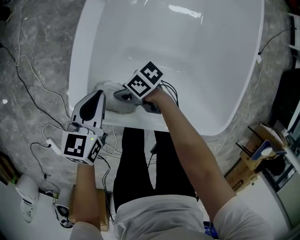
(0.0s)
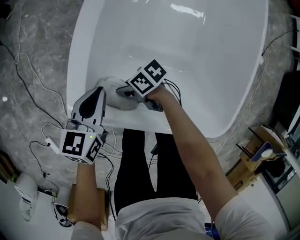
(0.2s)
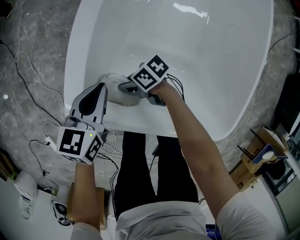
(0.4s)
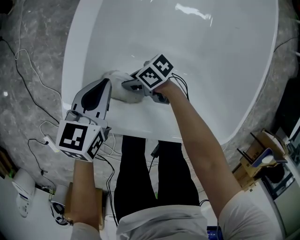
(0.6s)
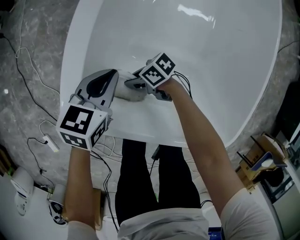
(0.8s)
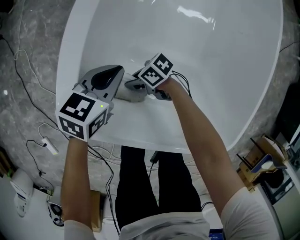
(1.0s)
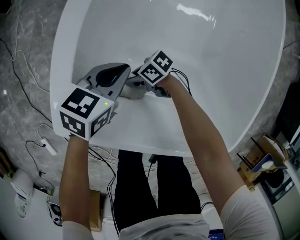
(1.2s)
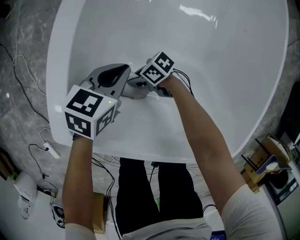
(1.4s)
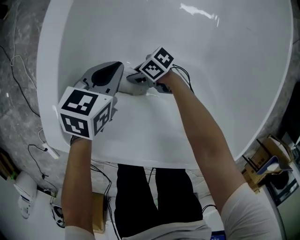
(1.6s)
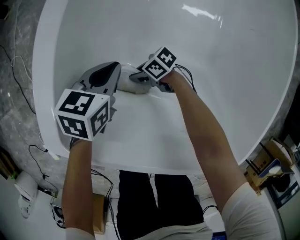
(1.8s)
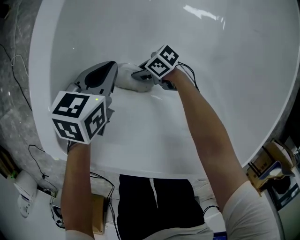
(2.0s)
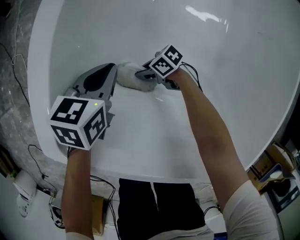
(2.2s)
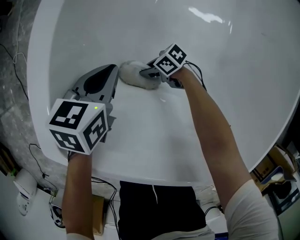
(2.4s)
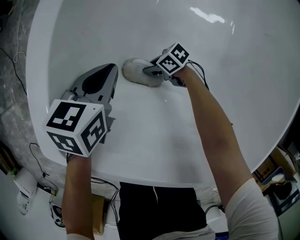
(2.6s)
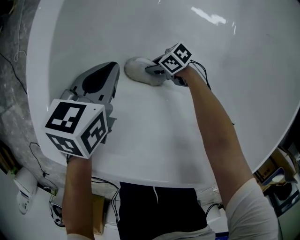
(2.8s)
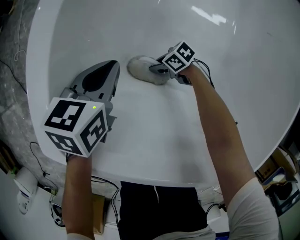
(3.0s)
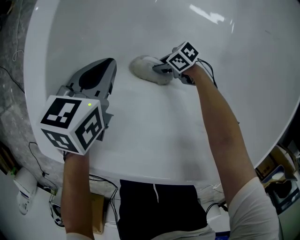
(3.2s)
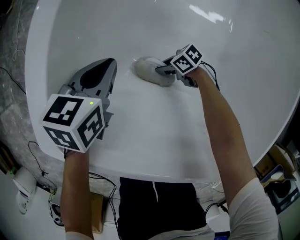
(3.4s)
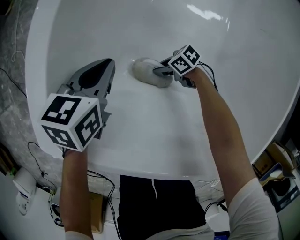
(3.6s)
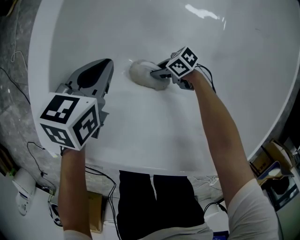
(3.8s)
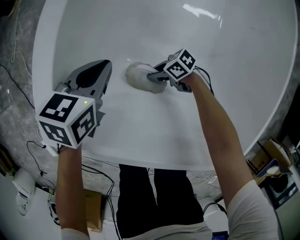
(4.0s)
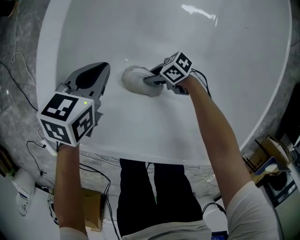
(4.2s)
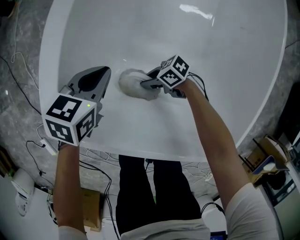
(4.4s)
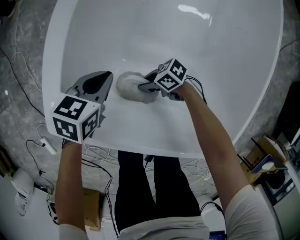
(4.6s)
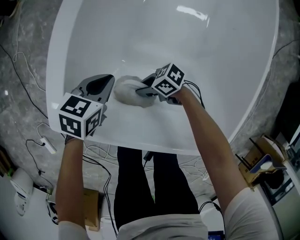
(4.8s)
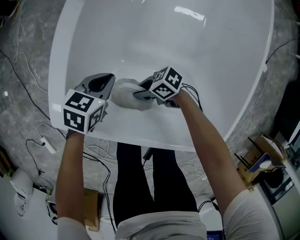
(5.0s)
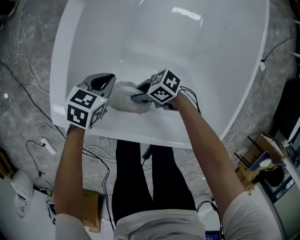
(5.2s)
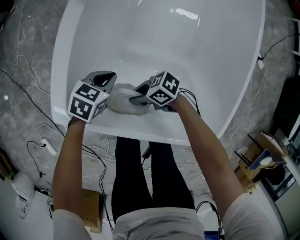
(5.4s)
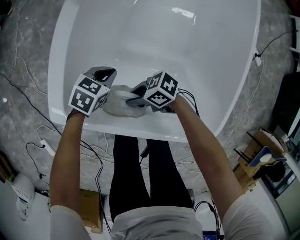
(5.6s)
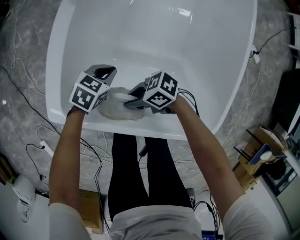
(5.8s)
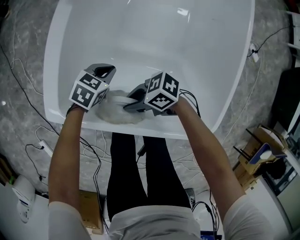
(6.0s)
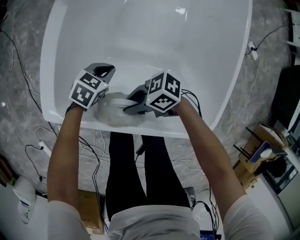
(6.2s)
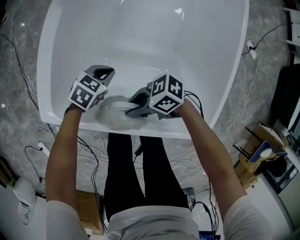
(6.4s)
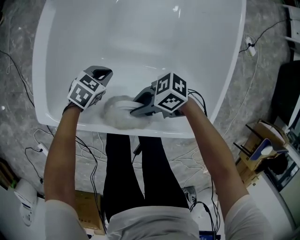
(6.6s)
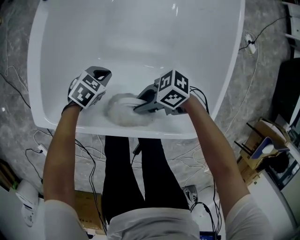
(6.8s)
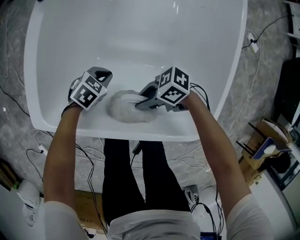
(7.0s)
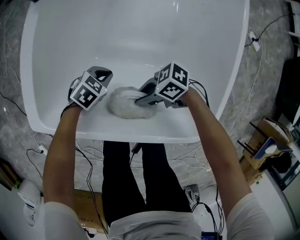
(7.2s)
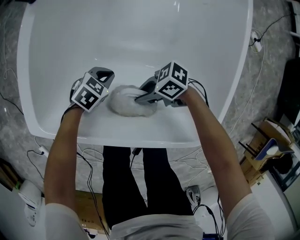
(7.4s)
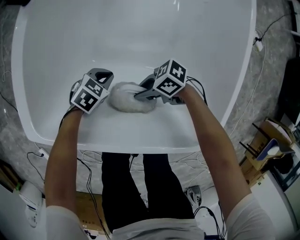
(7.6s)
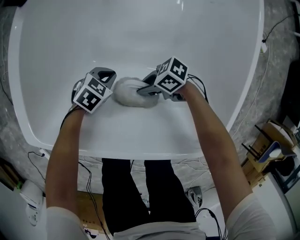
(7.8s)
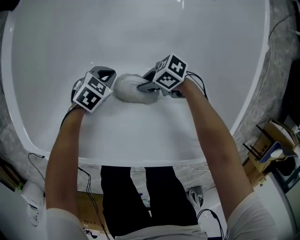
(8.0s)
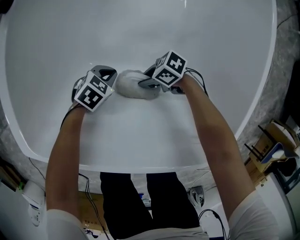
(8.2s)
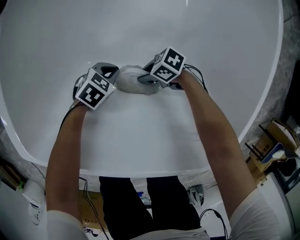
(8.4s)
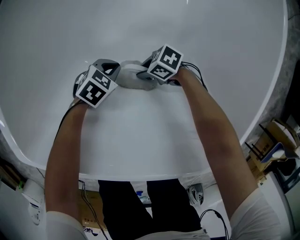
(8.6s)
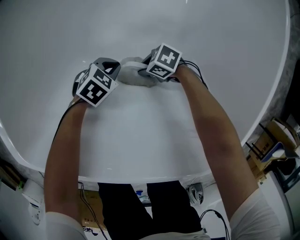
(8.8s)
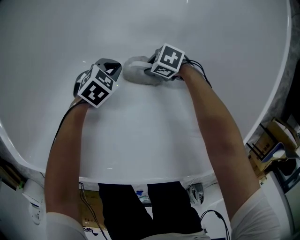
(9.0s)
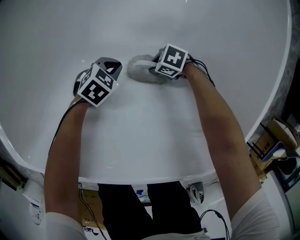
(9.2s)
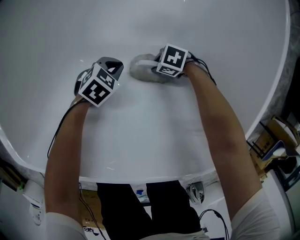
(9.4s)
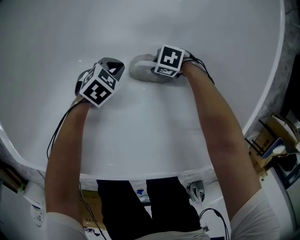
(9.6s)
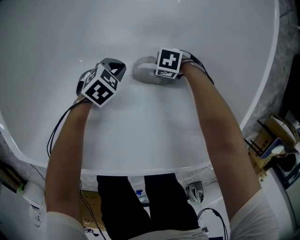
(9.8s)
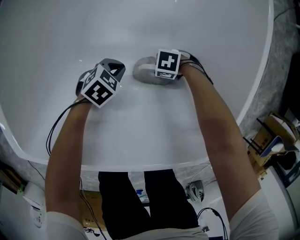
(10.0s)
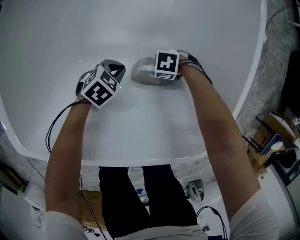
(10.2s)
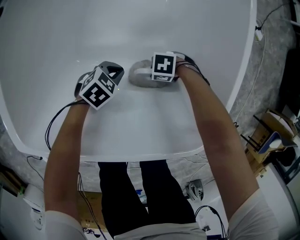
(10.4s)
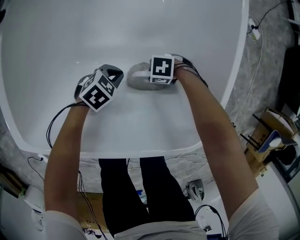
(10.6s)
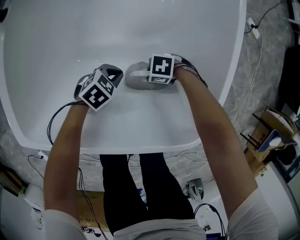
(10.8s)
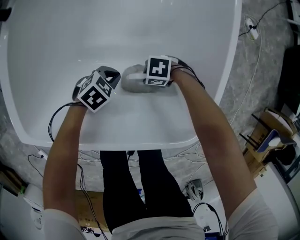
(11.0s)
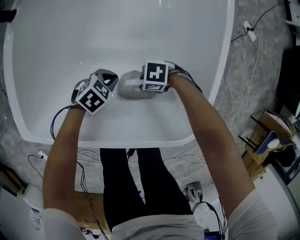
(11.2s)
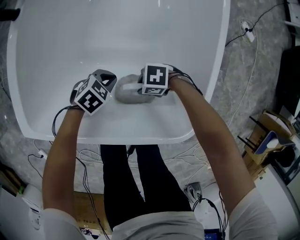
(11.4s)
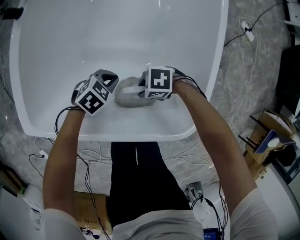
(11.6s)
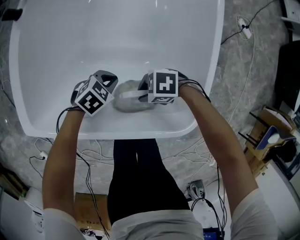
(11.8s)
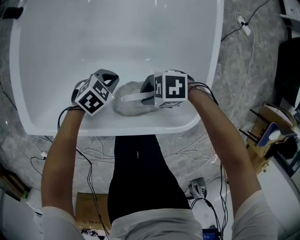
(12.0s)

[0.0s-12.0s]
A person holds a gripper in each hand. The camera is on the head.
0.0s to 1.6s: Both grippers move downward, some 20 cm.
1.6s to 3.0s: The right gripper goes approximately 10 cm downward.
3.0s to 4.4s: The right gripper travels upward by some 15 cm; the left gripper shifts some 5 cm upward.
4.4s to 6.0s: The right gripper shifts roughly 20 cm upward, while the left gripper shifts by roughly 10 cm, and changes its angle by approximately 20 degrees.
6.0s to 7.6s: Both grippers move downward, approximately 10 cm.
7.6s to 9.0s: The right gripper shifts some 20 cm downward and to the left, and rotates some 30 degrees. Meanwhile the left gripper is displaced downward and to the left by roughly 15 cm.
9.0s to 10.4s: The left gripper moves upward, about 10 cm. The right gripper moves upward and forward, approximately 10 cm.
10.4s to 12.0s: The right gripper goes approximately 20 cm upward, while the left gripper shifts about 10 cm upward.

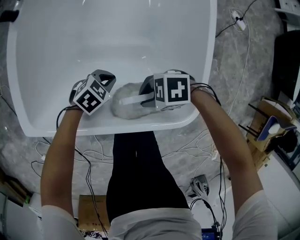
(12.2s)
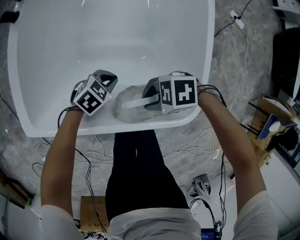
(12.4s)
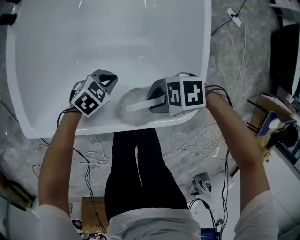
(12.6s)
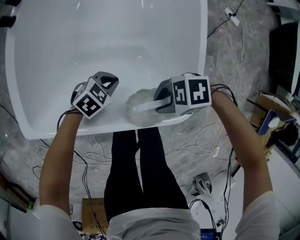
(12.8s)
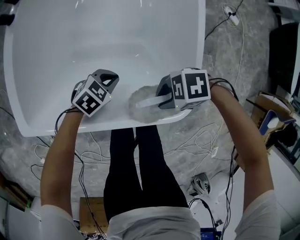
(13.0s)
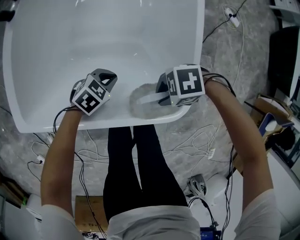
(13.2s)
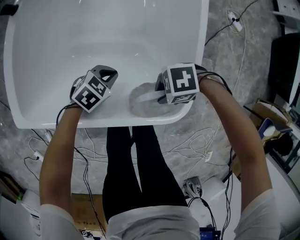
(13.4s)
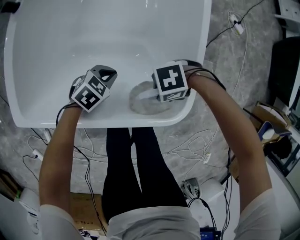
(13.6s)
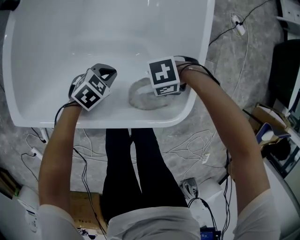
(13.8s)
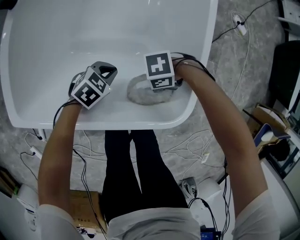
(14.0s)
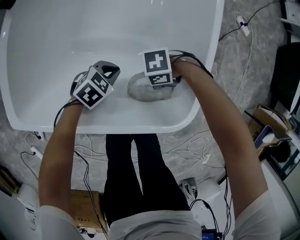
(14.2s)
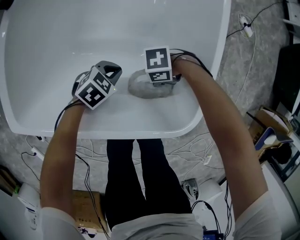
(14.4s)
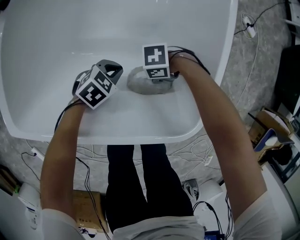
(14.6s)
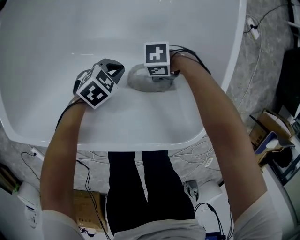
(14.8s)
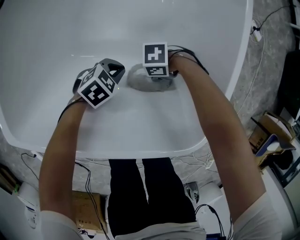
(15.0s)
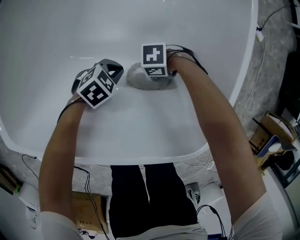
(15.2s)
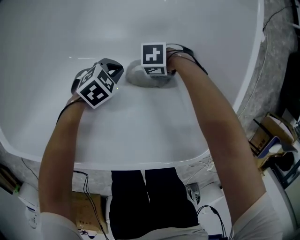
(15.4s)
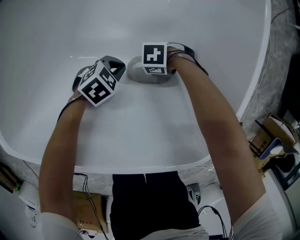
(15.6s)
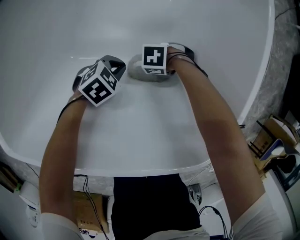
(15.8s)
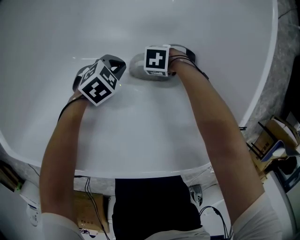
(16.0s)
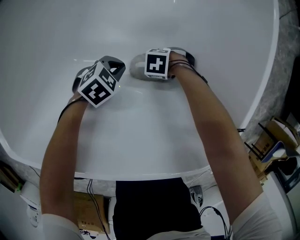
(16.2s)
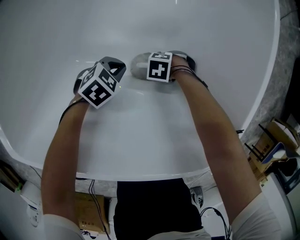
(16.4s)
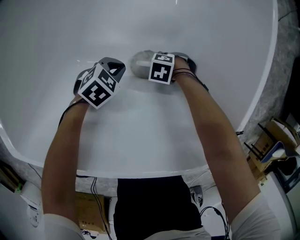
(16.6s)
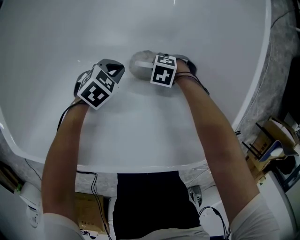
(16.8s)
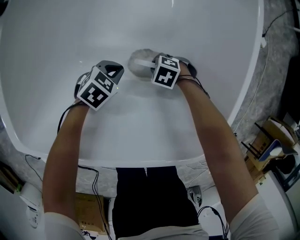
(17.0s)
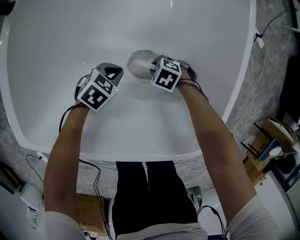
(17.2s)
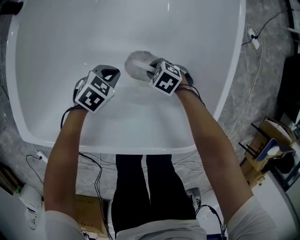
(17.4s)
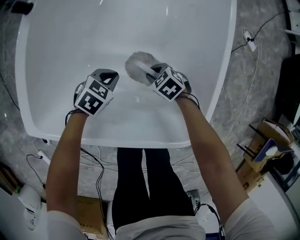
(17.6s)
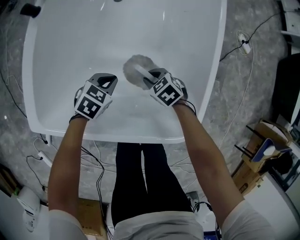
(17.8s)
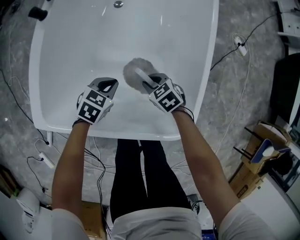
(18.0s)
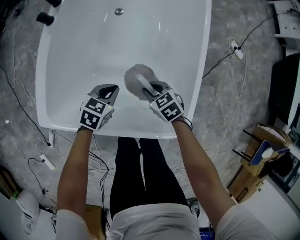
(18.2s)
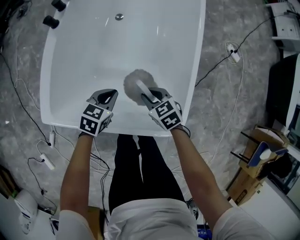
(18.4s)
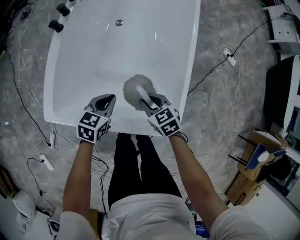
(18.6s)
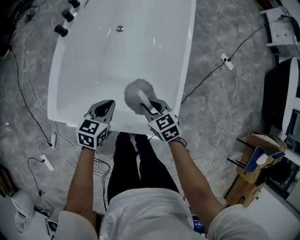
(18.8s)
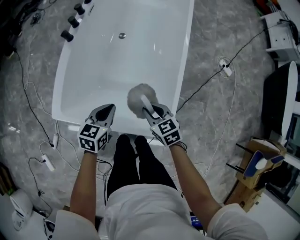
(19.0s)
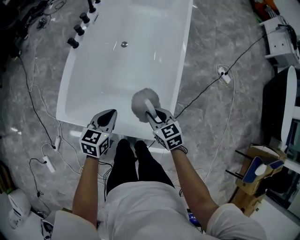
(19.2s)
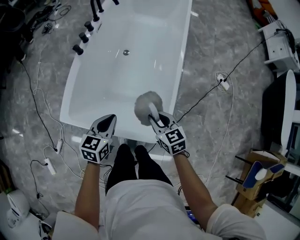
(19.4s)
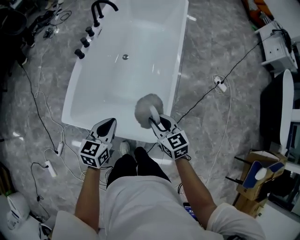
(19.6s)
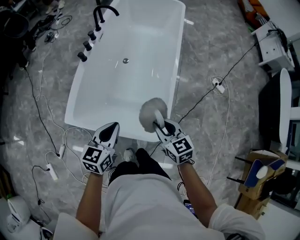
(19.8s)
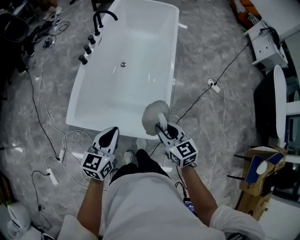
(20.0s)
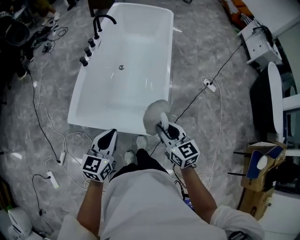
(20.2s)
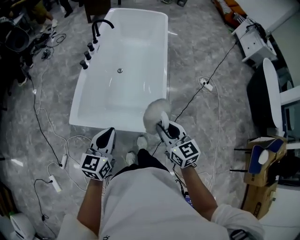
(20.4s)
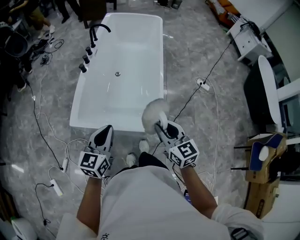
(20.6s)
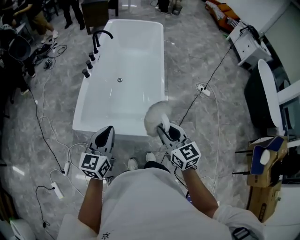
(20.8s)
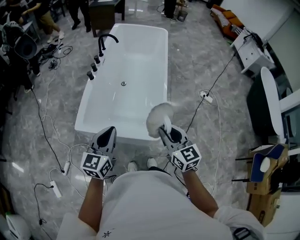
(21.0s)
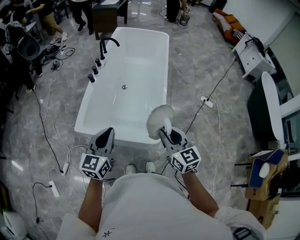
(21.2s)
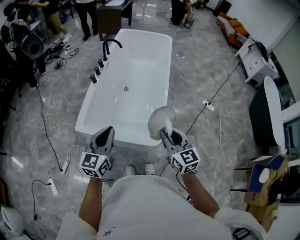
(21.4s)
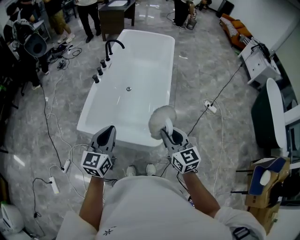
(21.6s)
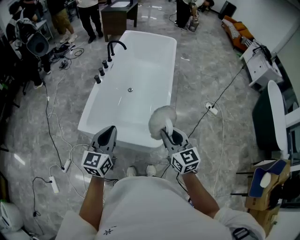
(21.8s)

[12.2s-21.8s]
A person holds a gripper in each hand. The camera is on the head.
12.2s to 13.8s: The right gripper shifts about 10 cm to the left and forward, and changes its angle by some 30 degrees.
13.8s to 15.4s: The right gripper travels downward by some 20 cm. Meanwhile the left gripper shifts approximately 15 cm downward.
15.4s to 17.0s: The left gripper shifts by some 5 cm; the right gripper moves backward, roughly 5 cm, and rotates roughly 30 degrees.
17.0s to 18.6s: Both grippers travel together upward, approximately 30 cm. The left gripper turns by roughly 30 degrees. Meanwhile the right gripper turns by about 50 degrees.
18.6s to 20.2s: The grippers both shift upward and backward by roughly 35 cm. The left gripper swivels about 30 degrees; the right gripper rotates about 30 degrees.
20.2s to 21.8s: The grippers both shift upward by some 10 cm.

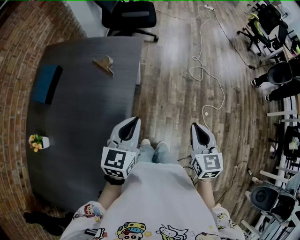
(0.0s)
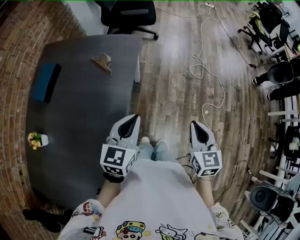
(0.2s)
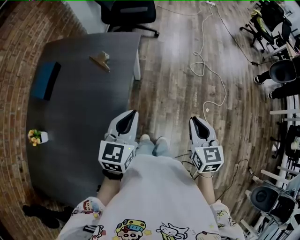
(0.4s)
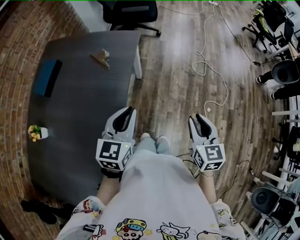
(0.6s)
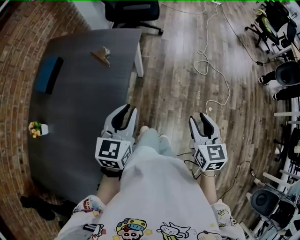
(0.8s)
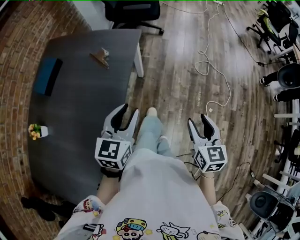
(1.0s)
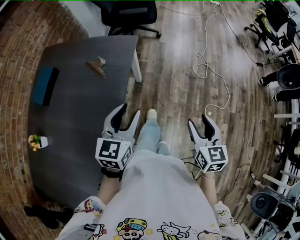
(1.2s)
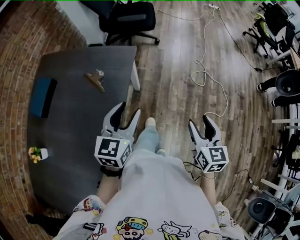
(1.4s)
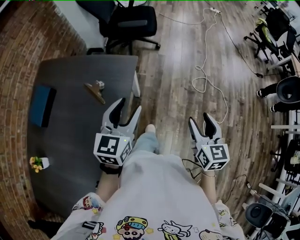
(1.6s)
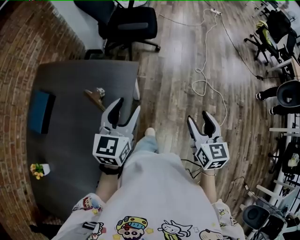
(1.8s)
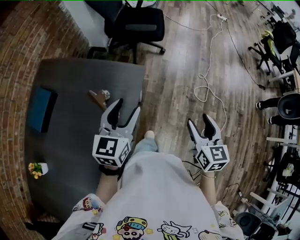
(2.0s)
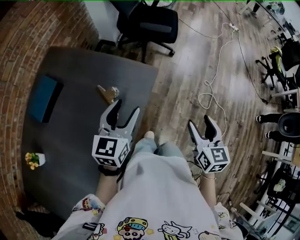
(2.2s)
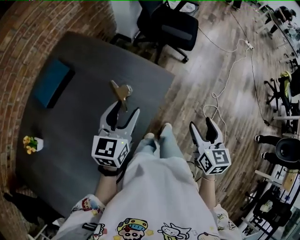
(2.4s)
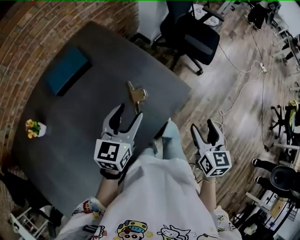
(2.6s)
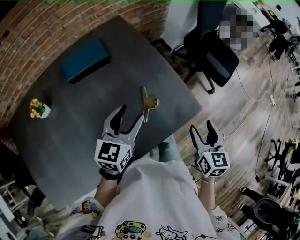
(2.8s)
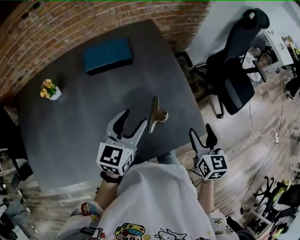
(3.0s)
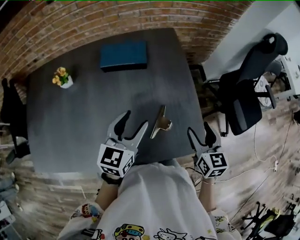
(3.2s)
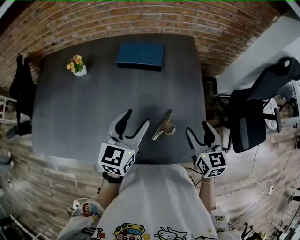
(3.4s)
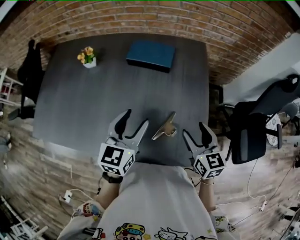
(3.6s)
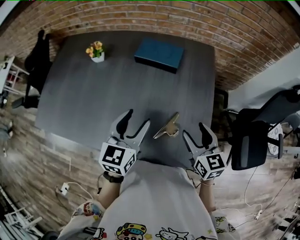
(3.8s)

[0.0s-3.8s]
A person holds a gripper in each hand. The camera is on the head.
0.0s to 1.2s: The left gripper goes approximately 5 cm forward, and opens. The right gripper goes some 10 cm to the right and forward, and opens up.
1.2s to 2.6s: The right gripper ends up roughly 35 cm from where it was, and swivels approximately 30 degrees; the left gripper shifts by approximately 25 cm, and swivels approximately 30 degrees.
2.6s to 3.8s: The right gripper moves some 25 cm, and changes its angle by some 70 degrees. Meanwhile the left gripper shifts by some 10 cm, and turns by some 60 degrees.
